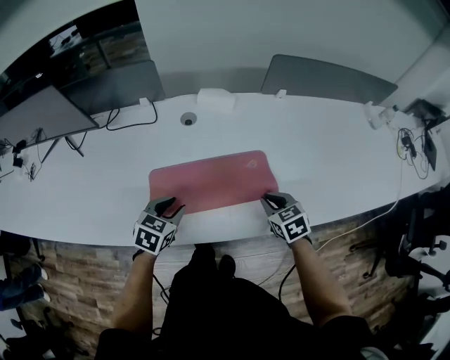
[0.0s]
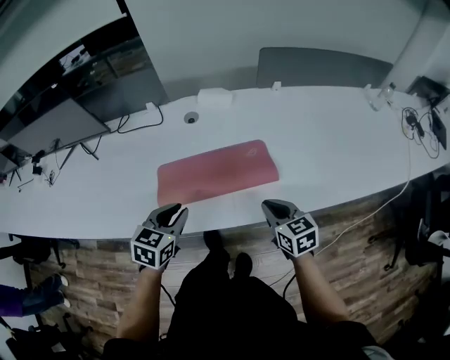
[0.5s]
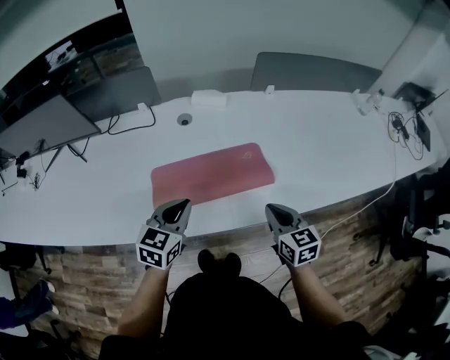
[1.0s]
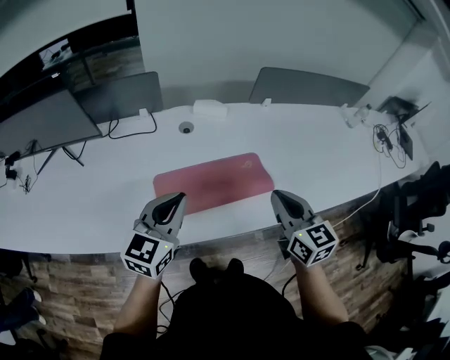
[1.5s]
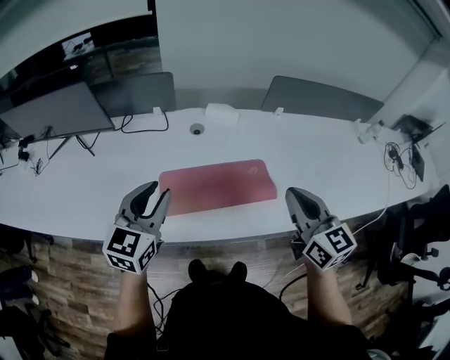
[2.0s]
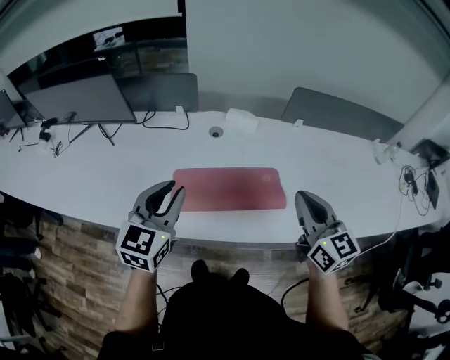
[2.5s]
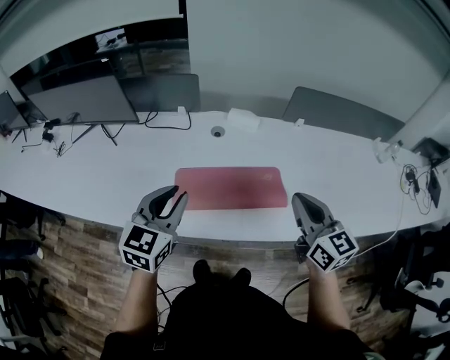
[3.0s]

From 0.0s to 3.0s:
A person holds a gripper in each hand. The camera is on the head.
From 0.0s to 1.5s: Both grippers move upward, about 20 cm. The left gripper tilts its fingers some 30 degrees upward, while the right gripper tips its fingers upward by roughly 30 degrees.
From 1.5s to 3.0s: The right gripper ends up some 5 cm from where it was.

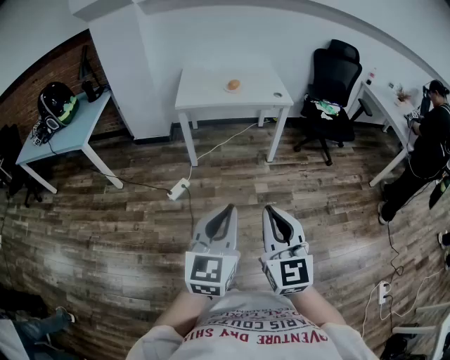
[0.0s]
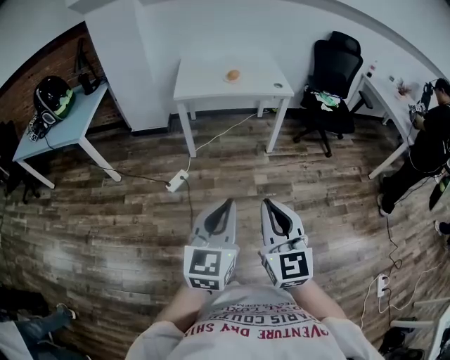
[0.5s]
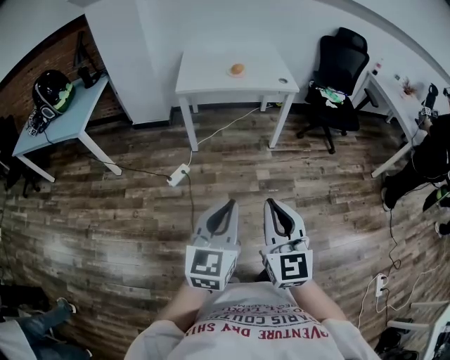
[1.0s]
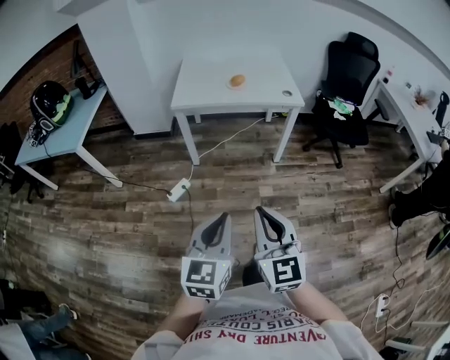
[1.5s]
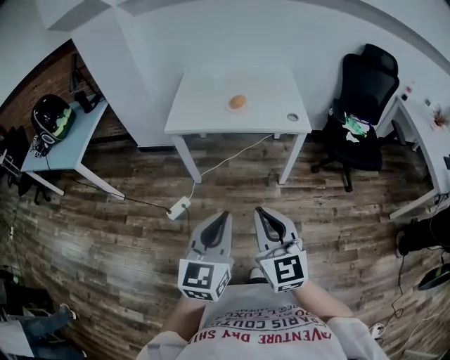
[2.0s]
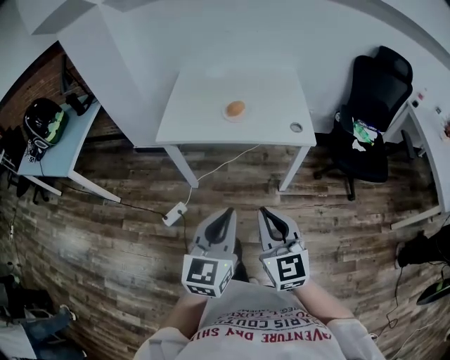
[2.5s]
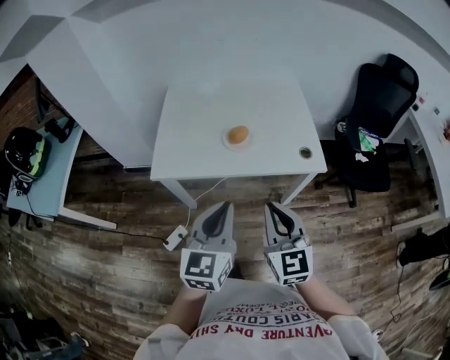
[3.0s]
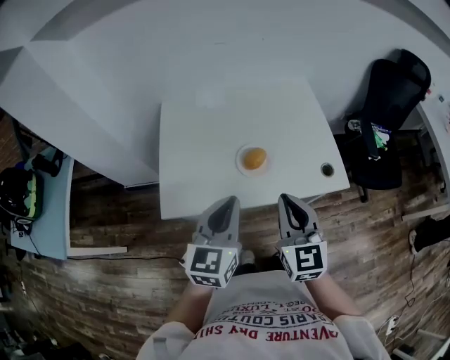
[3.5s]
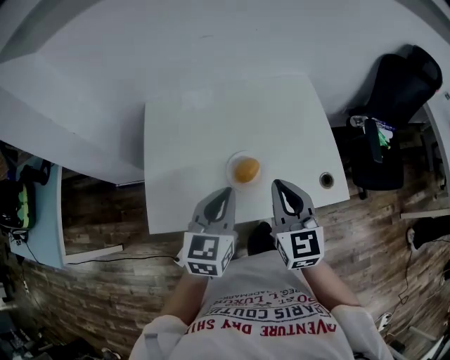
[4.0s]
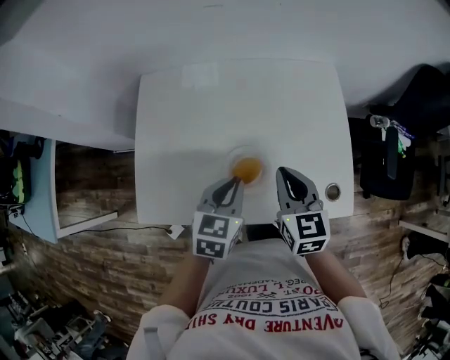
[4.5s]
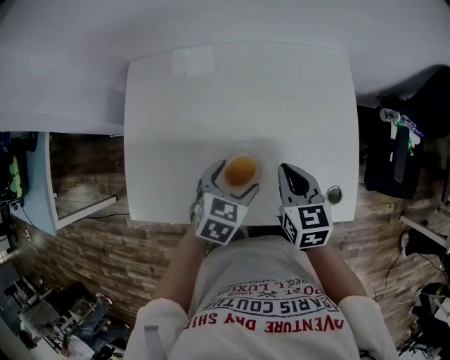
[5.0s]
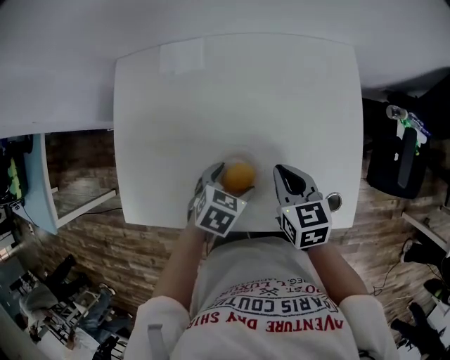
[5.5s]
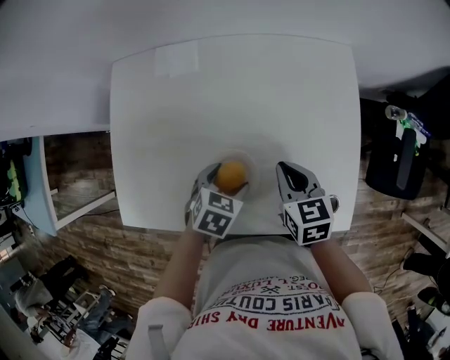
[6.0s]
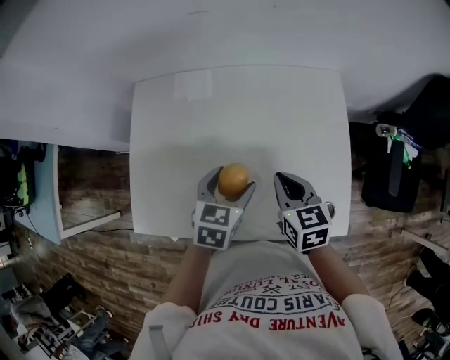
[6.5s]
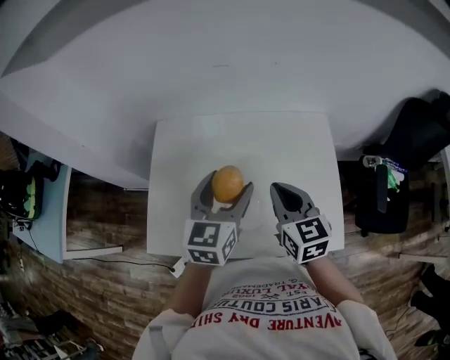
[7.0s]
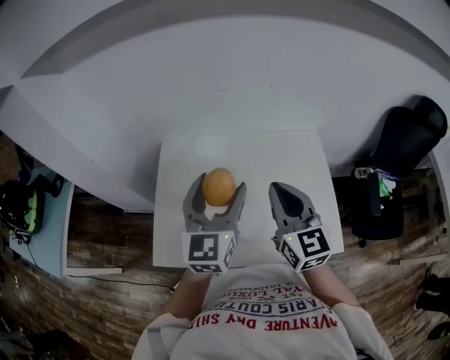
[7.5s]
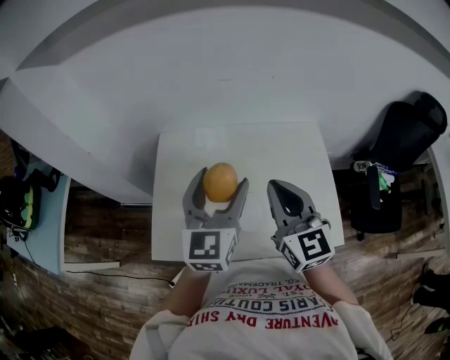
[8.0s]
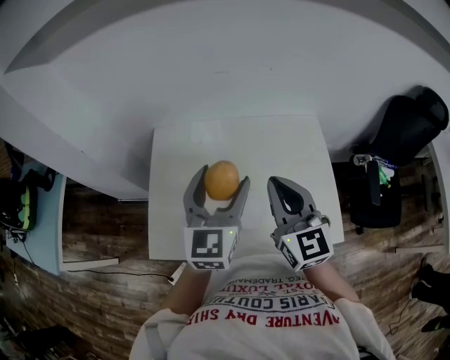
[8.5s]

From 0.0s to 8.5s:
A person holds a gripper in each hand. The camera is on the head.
From 0.0s to 2.0s: The grippers both shift forward by some 35 cm.
From 2.0s to 4.0s: Both grippers are carried forward, some 60 cm.
From 4.0s to 6.5s: The right gripper heads forward and downward, covering some 20 cm, and rotates approximately 30 degrees; the left gripper shifts some 20 cm forward, downward and to the right, changes its angle by roughly 20 degrees, and opens its fingers.
From 6.5s to 8.5s: Both grippers move upward, about 25 cm. The left gripper points its fingers some 40 degrees further upward; the right gripper tilts its fingers roughly 30 degrees upward.

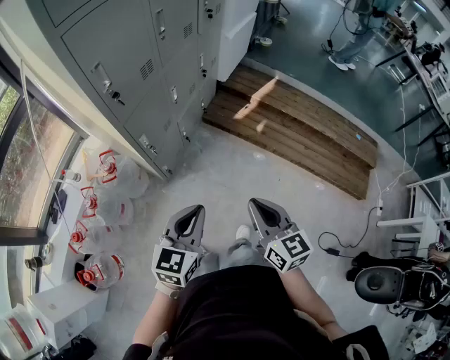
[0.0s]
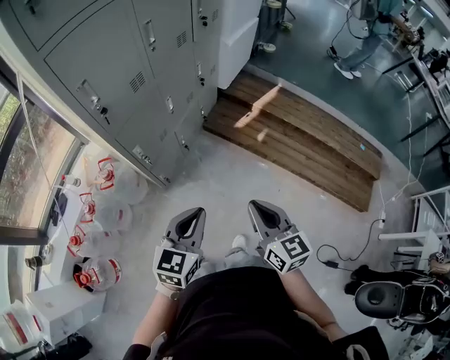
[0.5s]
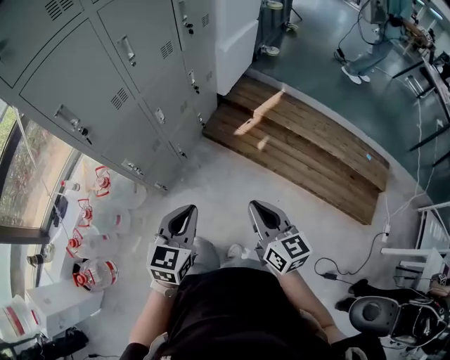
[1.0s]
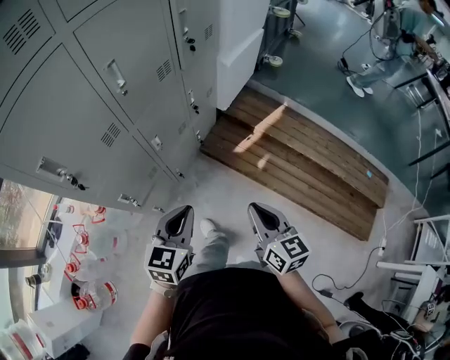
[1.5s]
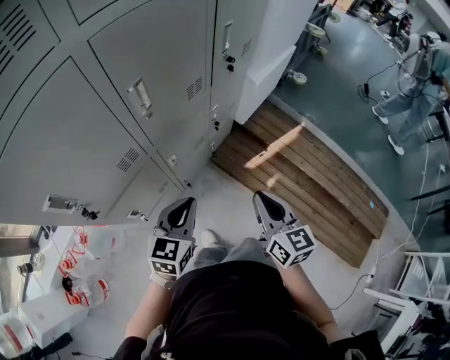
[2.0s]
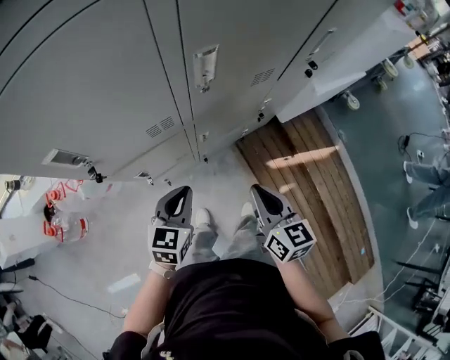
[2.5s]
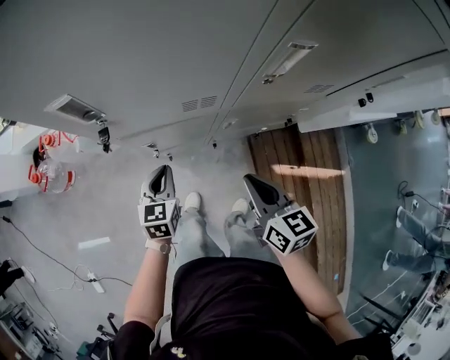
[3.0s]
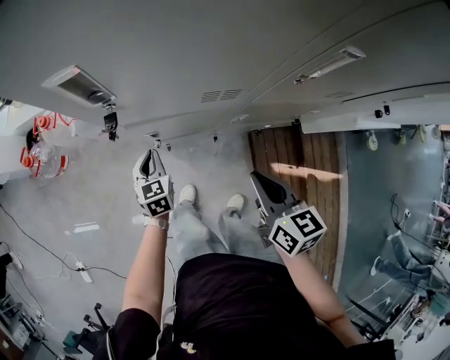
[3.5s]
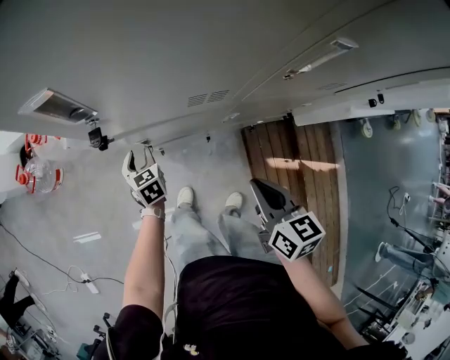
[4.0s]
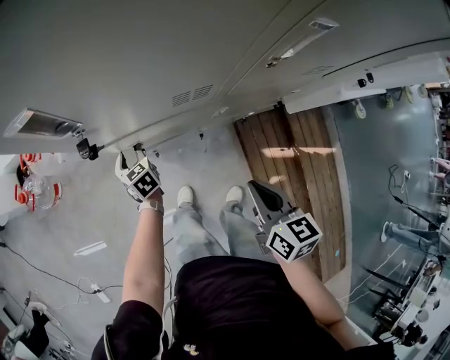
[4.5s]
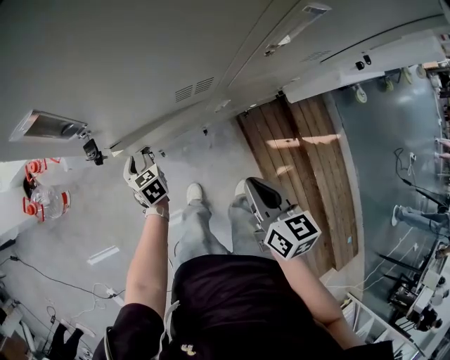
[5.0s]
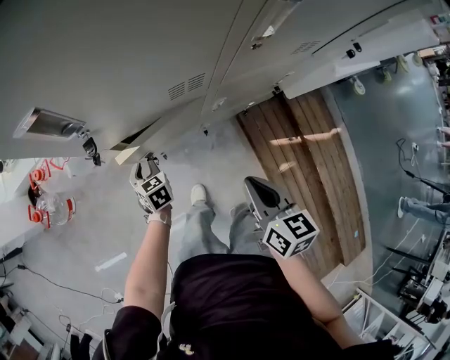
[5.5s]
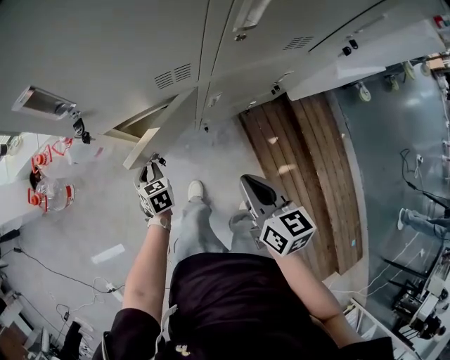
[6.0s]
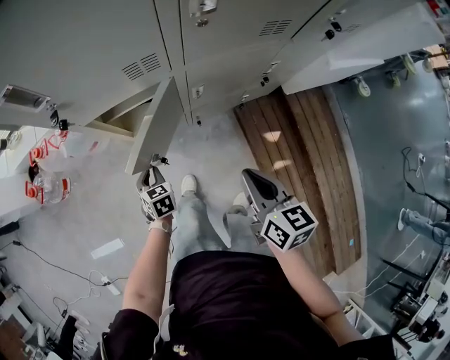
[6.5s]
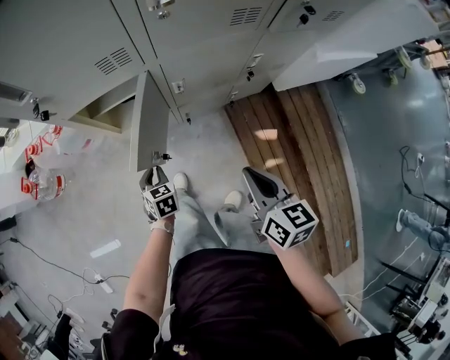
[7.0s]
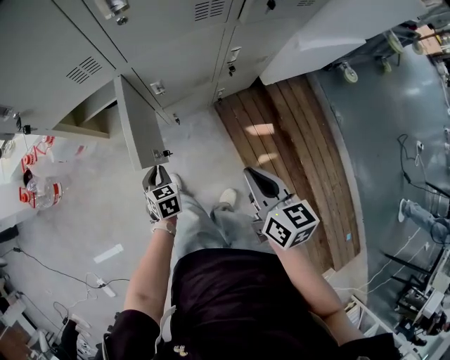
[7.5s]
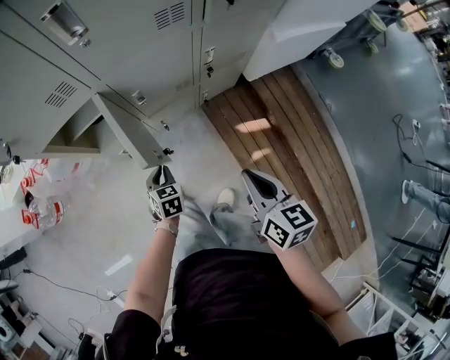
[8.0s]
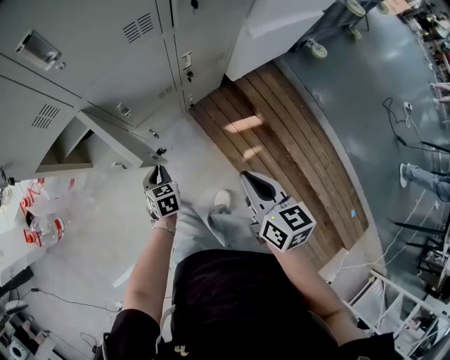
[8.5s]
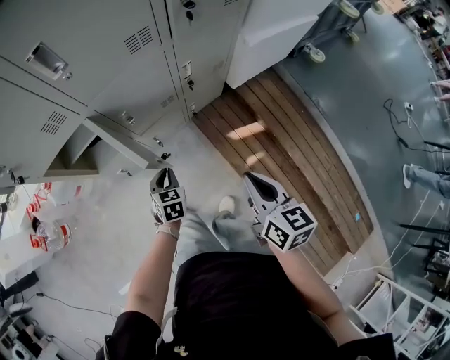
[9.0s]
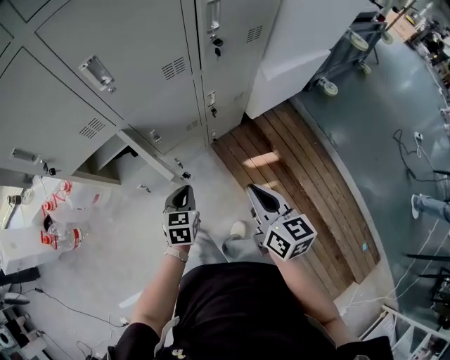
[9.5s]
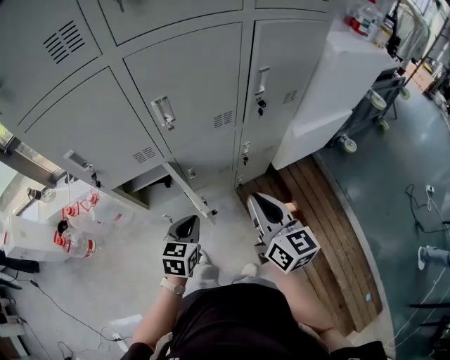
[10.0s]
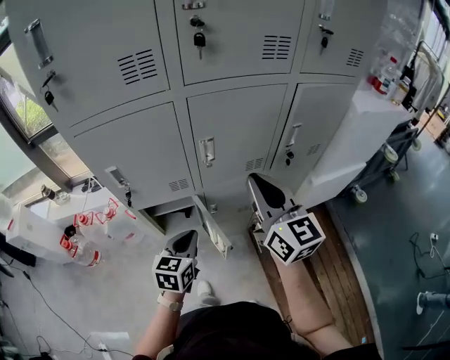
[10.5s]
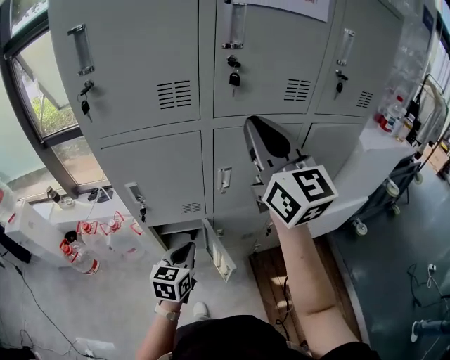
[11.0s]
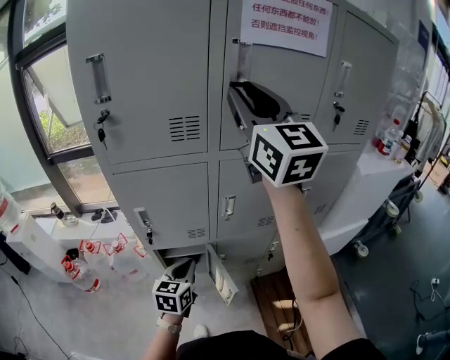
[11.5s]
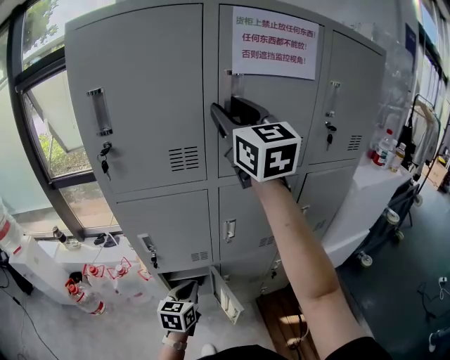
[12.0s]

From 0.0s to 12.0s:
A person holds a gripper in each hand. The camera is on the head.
From 0.0s to 2.0s: Both grippers are carried forward, roughly 40 cm.
From 2.0s to 4.0s: The right gripper changes place by some 20 cm, and changes its angle by approximately 40 degrees. The left gripper is displaced downward by roughly 30 cm, rotates approximately 80 degrees, and opens its fingers.
From 4.0s to 6.0s: Both grippers travel together backward, approximately 10 cm.
From 6.0s to 8.0s: The grippers both shift to the right and backward by about 25 cm.
From 8.0s to 10.0s: The left gripper is displaced upward by approximately 30 cm, and rotates about 20 degrees, while the right gripper shifts approximately 20 cm upward and forward, and changes its angle by about 30 degrees.
From 10.0s to 12.0s: The left gripper shifts approximately 20 cm to the left, upward and forward. The right gripper heads upward, forward and to the left, covering approximately 60 cm, swivels some 40 degrees, and opens.

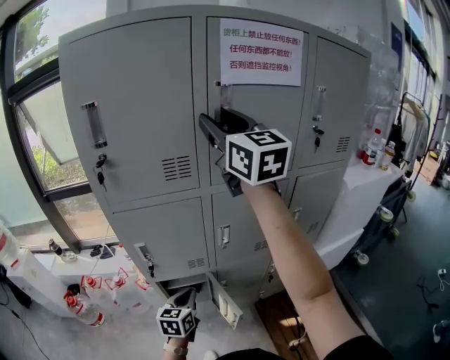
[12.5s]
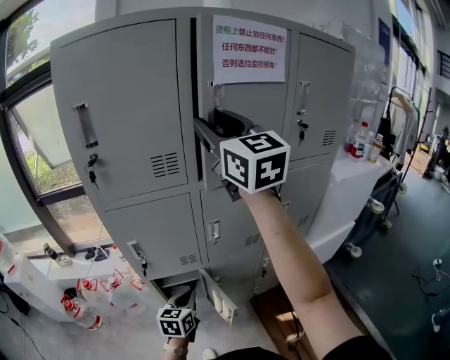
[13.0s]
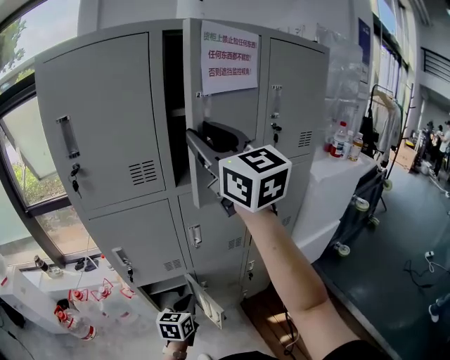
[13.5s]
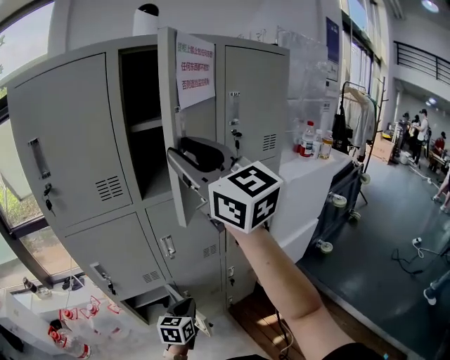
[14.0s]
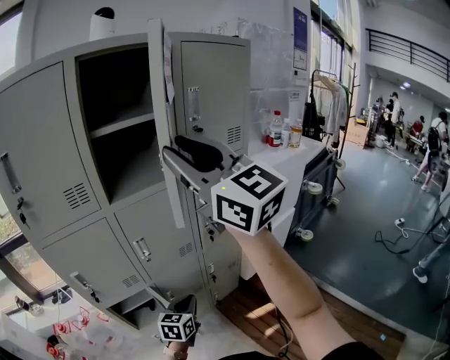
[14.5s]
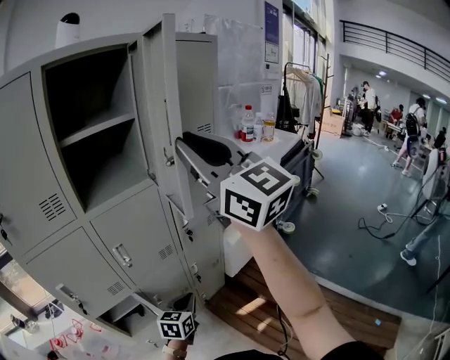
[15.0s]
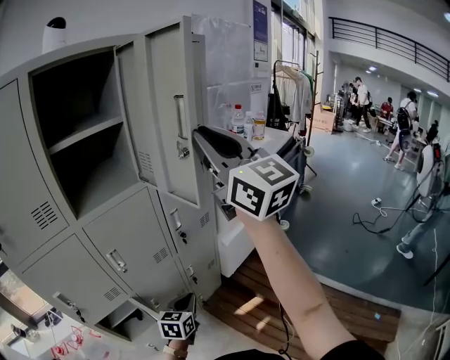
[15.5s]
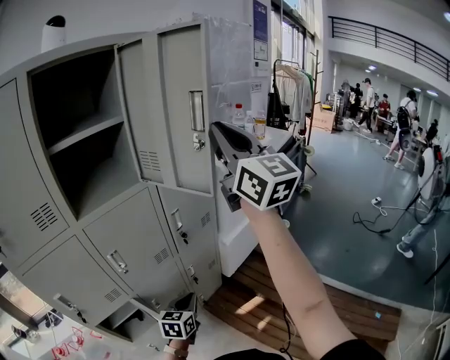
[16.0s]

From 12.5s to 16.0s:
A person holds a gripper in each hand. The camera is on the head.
From 12.5s to 14.5s: The right gripper moves backward and to the right, approximately 25 cm, while the left gripper is displaced to the right by some 25 cm, and swivels roughly 20 degrees.
From 14.5s to 16.0s: The right gripper is displaced to the right by about 20 cm, turns by about 30 degrees, and closes. Meanwhile the left gripper is displaced to the right by approximately 5 cm.
